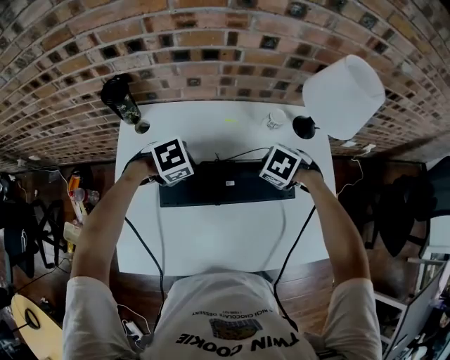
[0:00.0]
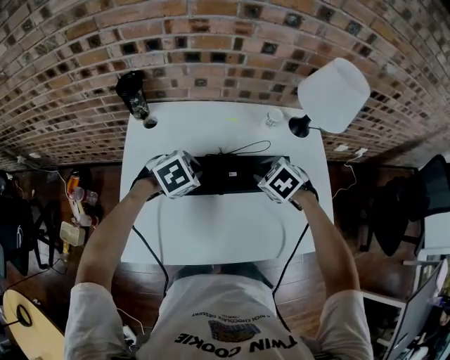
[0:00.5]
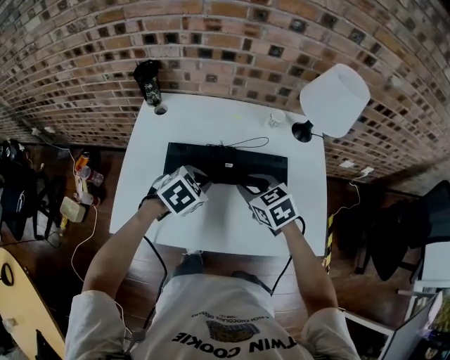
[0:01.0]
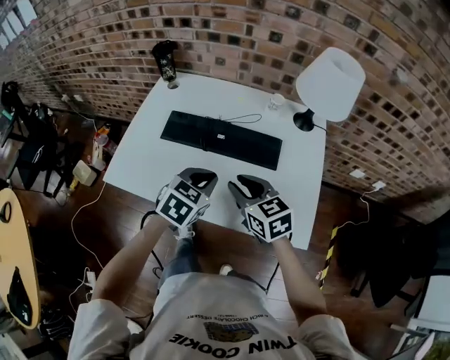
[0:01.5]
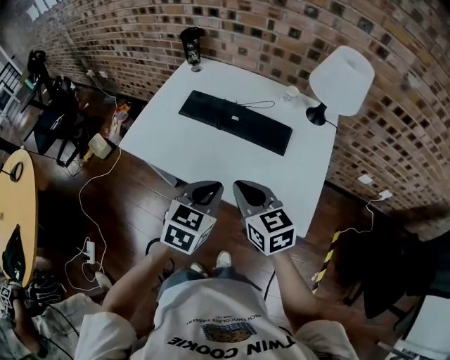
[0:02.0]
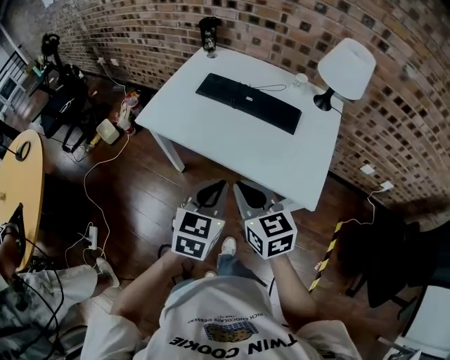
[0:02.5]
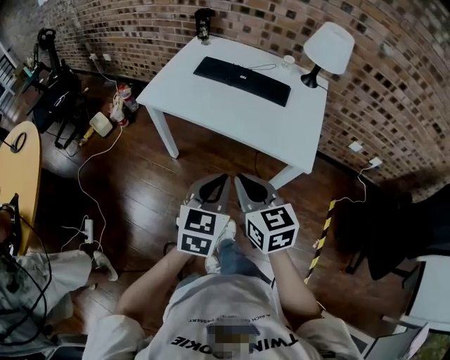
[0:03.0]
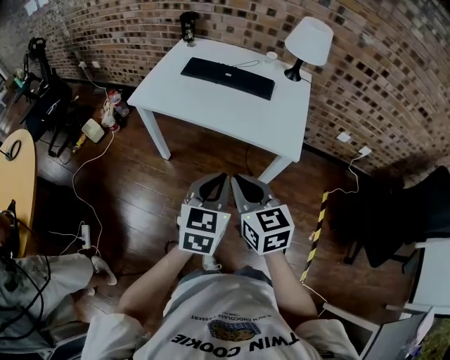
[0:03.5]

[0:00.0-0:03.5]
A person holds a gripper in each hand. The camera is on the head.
0:00.0 to 0:02.0: The left gripper shifts by some 40 cm, and tips its fingers upward by approximately 40 degrees. The right gripper changes place by roughly 35 cm, points its fingers approximately 60 degrees further upward, and closes up.
0:02.0 to 0:03.5: The two grippers go roughly 25 cm backward.

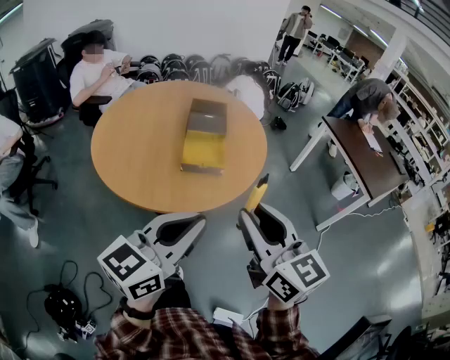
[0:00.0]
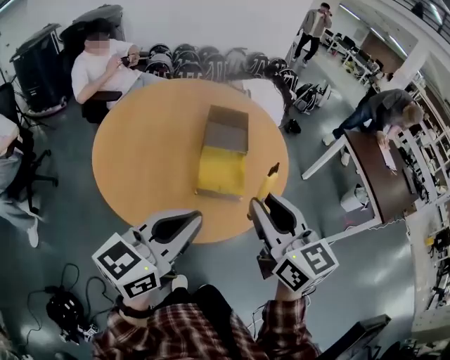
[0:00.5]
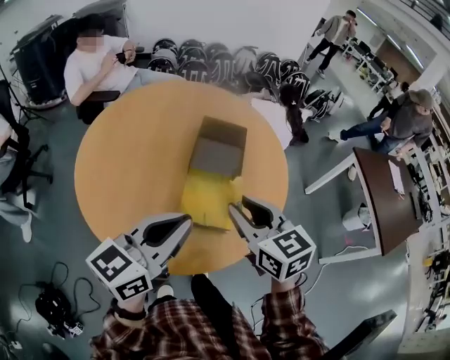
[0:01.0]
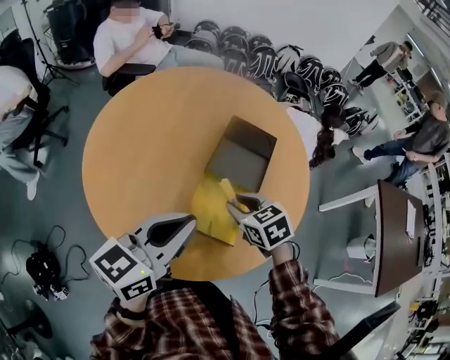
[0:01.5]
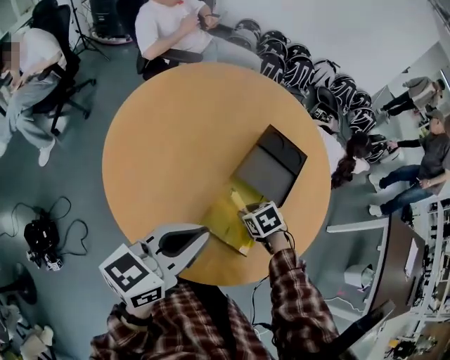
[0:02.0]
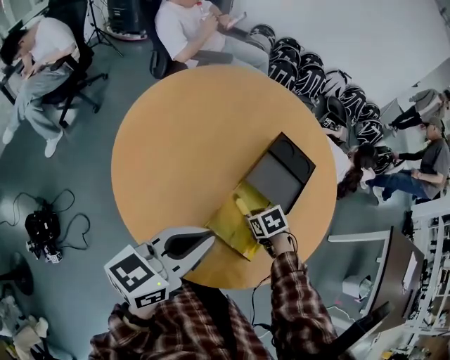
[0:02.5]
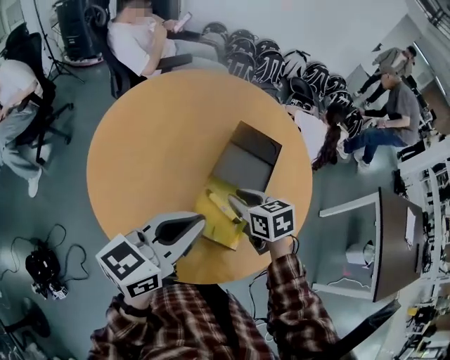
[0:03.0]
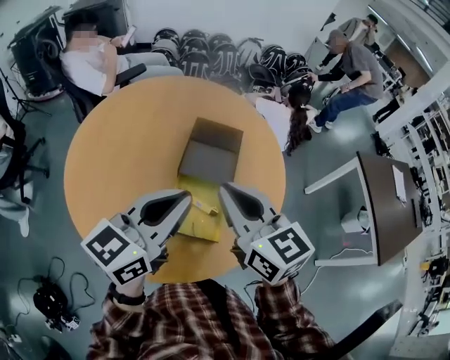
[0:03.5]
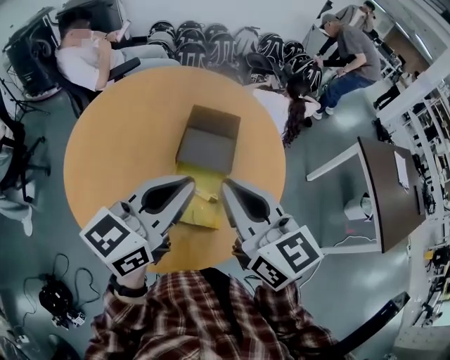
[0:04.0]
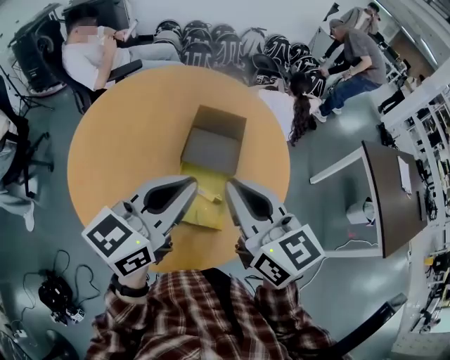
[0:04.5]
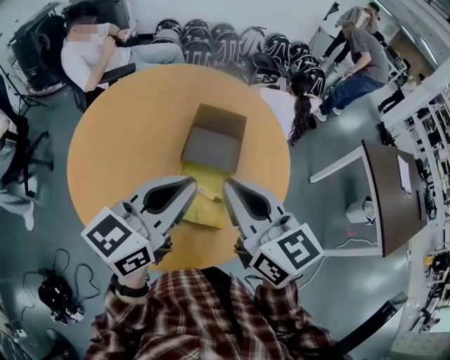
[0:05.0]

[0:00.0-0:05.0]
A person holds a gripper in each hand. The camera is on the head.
0:00.0 to 0:02.5: The left gripper shifts by about 35 cm, and changes its angle by roughly 30 degrees, while the right gripper shifts by some 60 cm, and points its fingers approximately 70 degrees further downward.
0:02.5 to 0:05.0: The left gripper moves some 10 cm, and turns by approximately 20 degrees; the right gripper shifts approximately 35 cm upward, angles its fingers upward, by some 60 degrees, and closes its fingers.

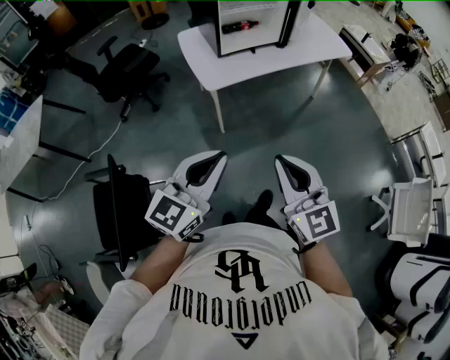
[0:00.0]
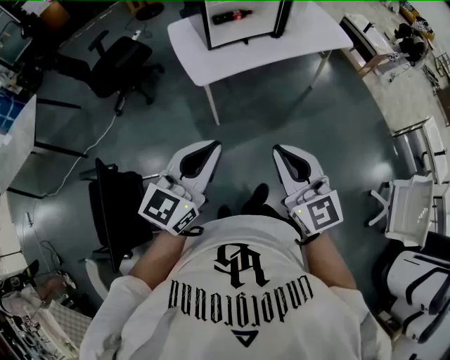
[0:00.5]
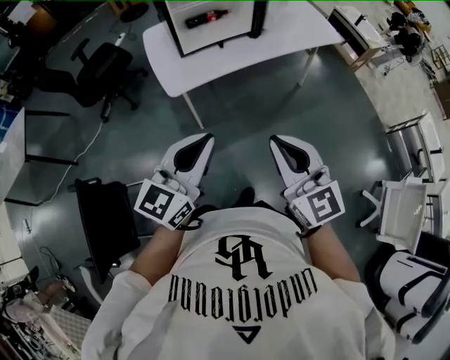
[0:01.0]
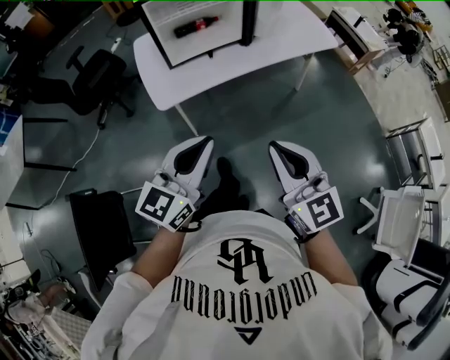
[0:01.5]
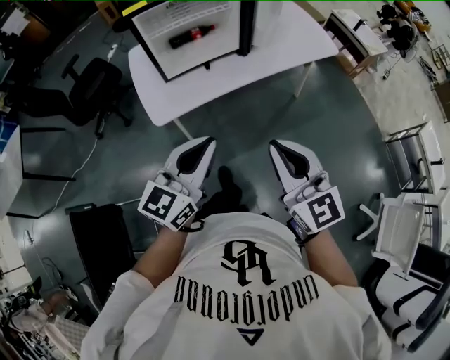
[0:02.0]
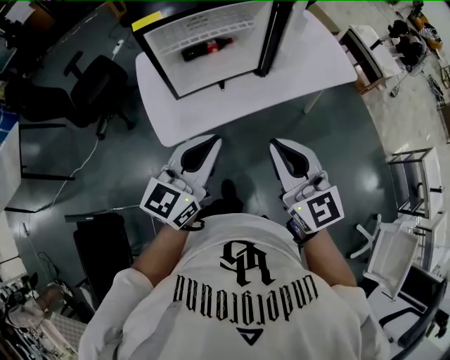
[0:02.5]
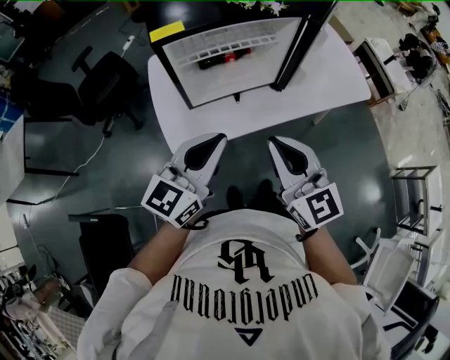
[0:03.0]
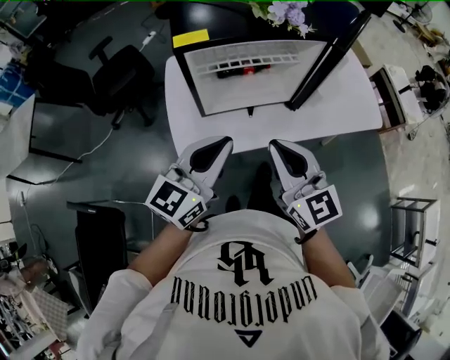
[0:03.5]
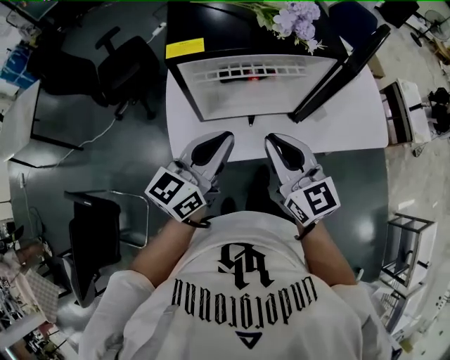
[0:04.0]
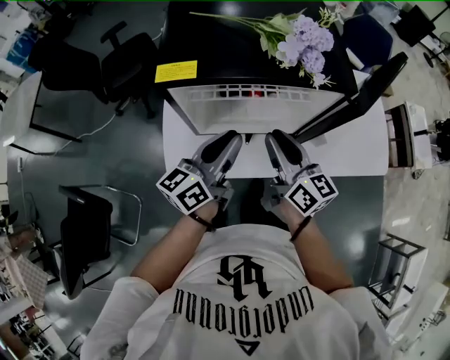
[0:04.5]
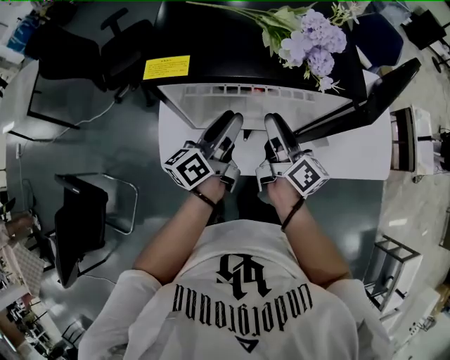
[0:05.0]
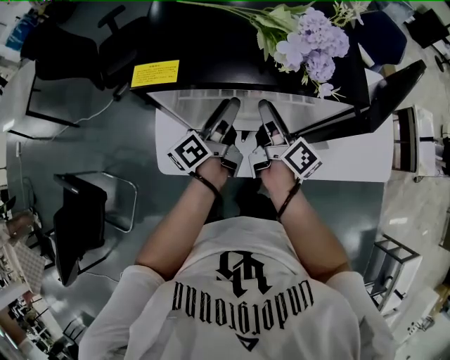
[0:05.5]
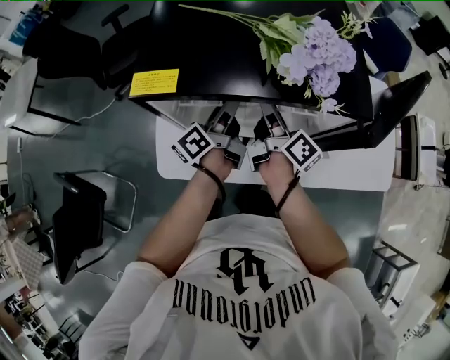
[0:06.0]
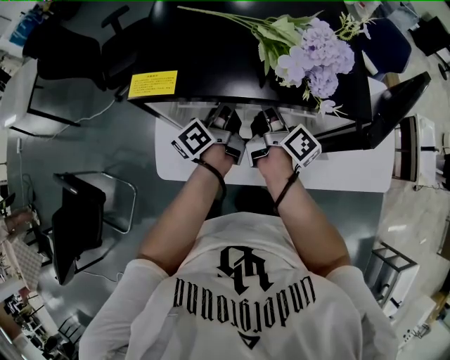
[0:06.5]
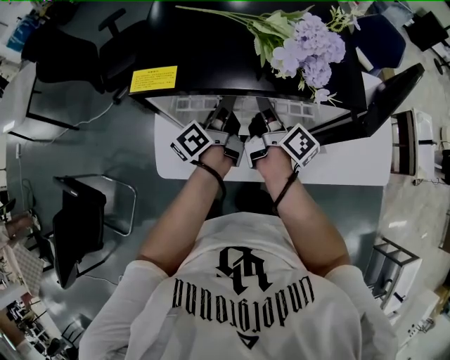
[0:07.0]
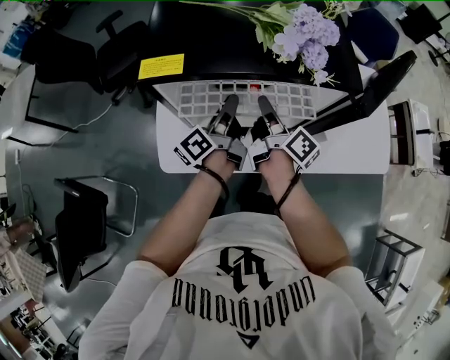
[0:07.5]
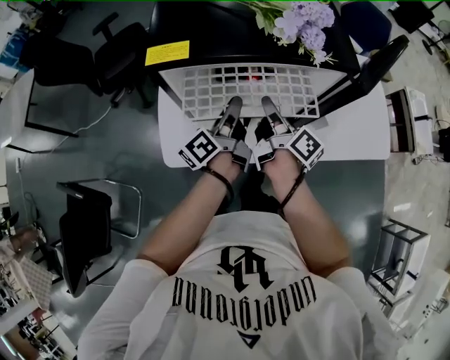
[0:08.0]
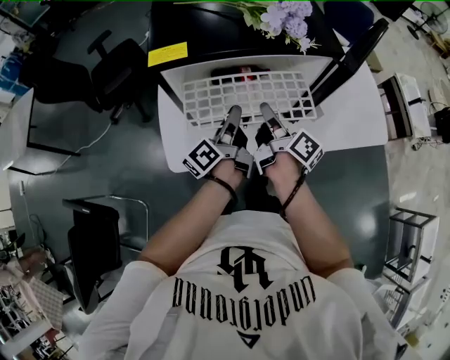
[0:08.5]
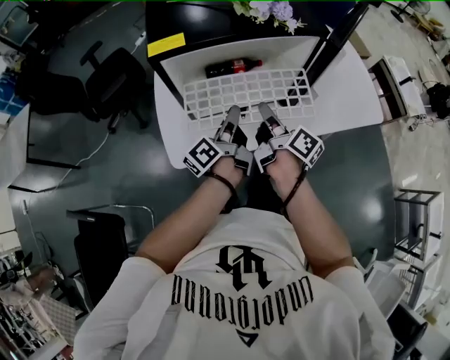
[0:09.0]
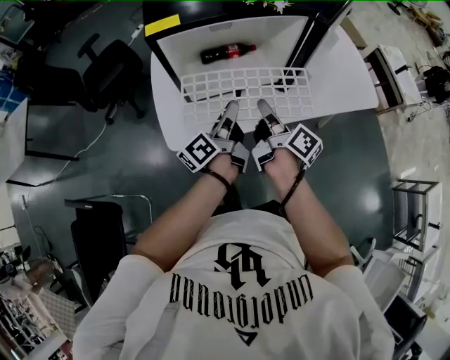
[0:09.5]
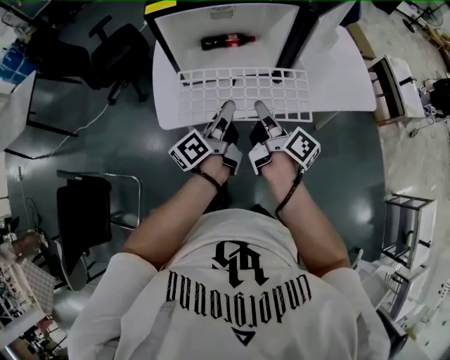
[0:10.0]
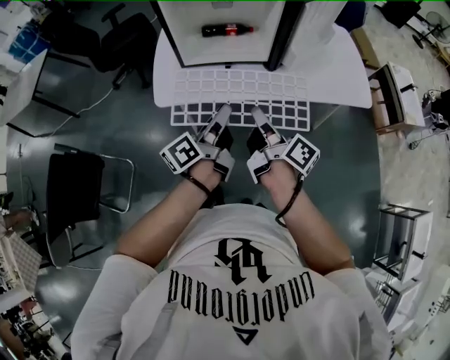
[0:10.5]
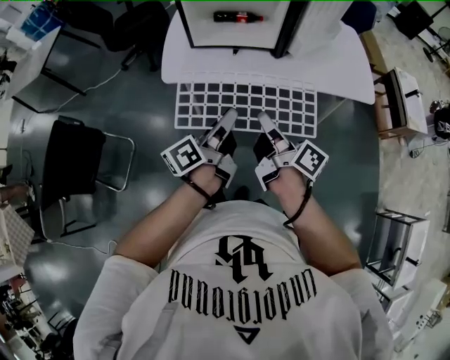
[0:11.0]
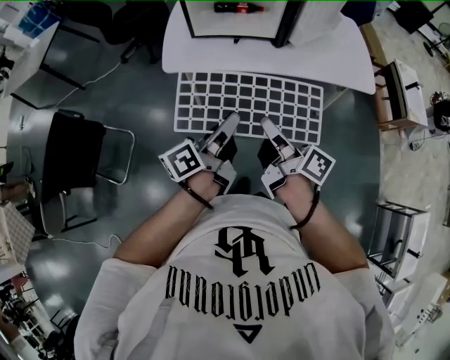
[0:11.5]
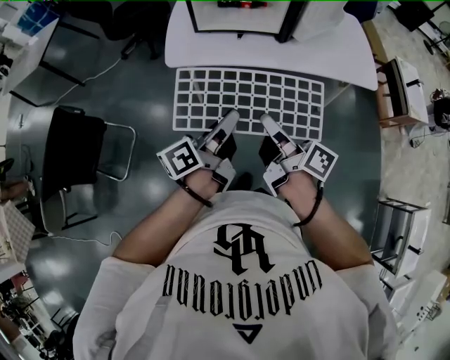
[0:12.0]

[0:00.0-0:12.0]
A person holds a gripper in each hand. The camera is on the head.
0:00.0 to 0:02.0: The two grippers go roughly 35 cm forward and to the right.
0:02.0 to 0:04.0: Both grippers move forward, approximately 35 cm. The right gripper swivels approximately 20 degrees.
0:04.0 to 0:06.0: The two grippers go some 30 cm forward and downward. The right gripper rotates around the line of its fingers by about 60 degrees, clockwise from behind, and opens its fingers. Meanwhile the left gripper rolls counterclockwise, seen from behind, by about 50 degrees, and opens its fingers.
0:06.0 to 0:08.0: Both grippers travel together backward, about 10 cm. The right gripper closes up. Meanwhile the left gripper closes.
0:08.0 to 0:10.0: The two grippers go some 25 cm backward.
0:10.0 to 0:12.0: The two grippers go some 30 cm backward. The right gripper rotates roughly 20 degrees.

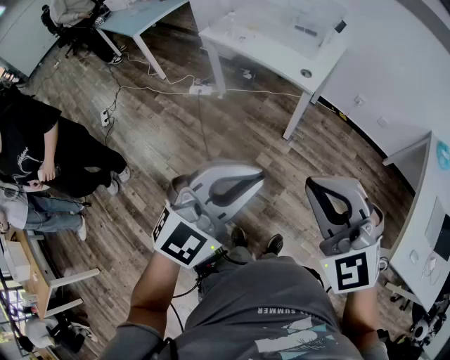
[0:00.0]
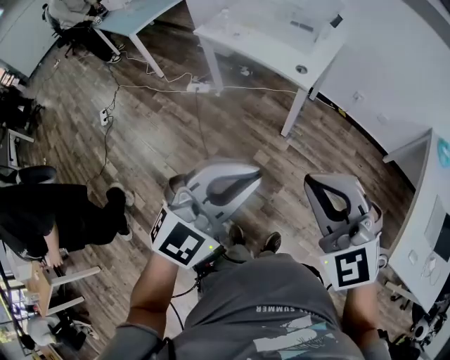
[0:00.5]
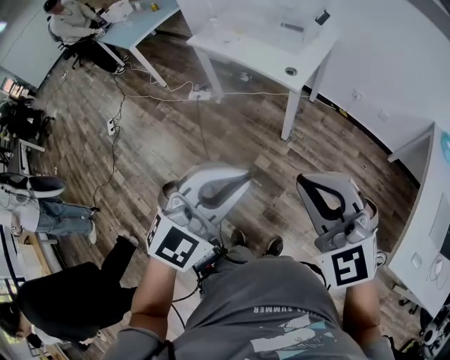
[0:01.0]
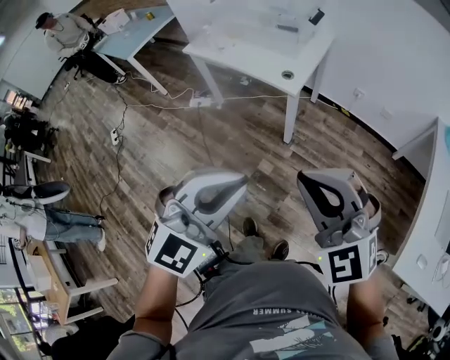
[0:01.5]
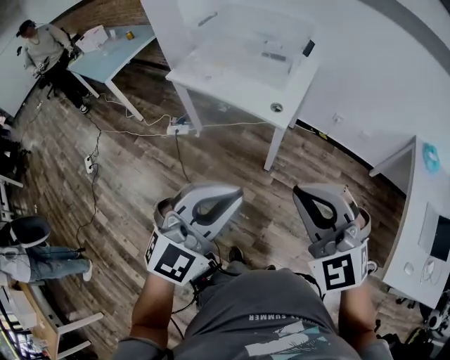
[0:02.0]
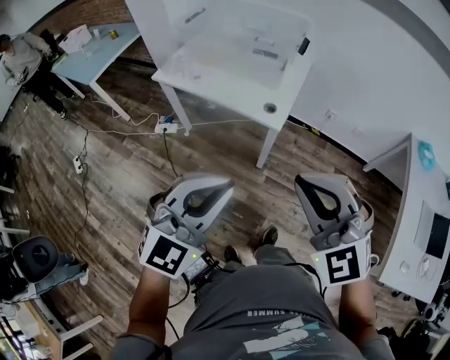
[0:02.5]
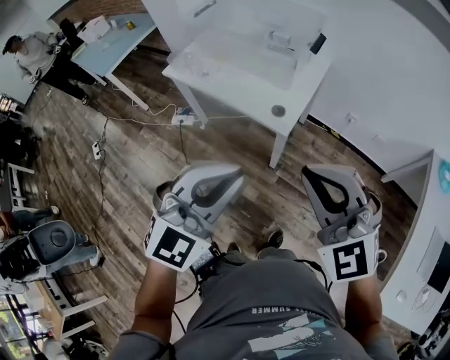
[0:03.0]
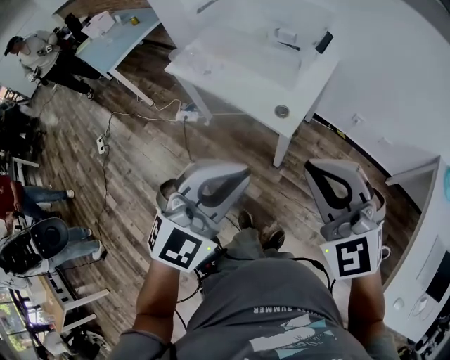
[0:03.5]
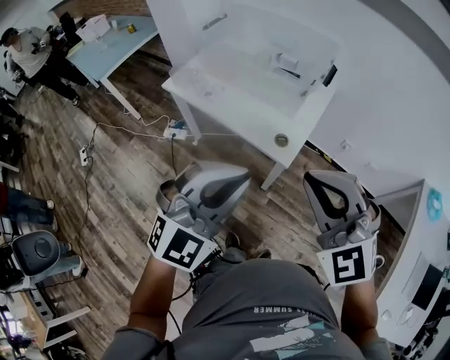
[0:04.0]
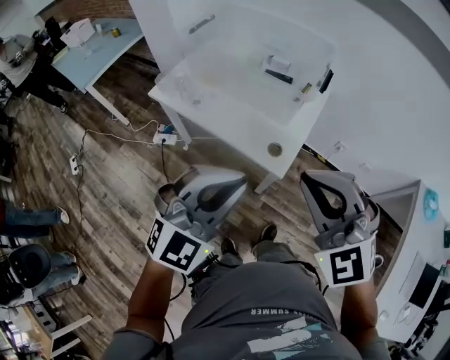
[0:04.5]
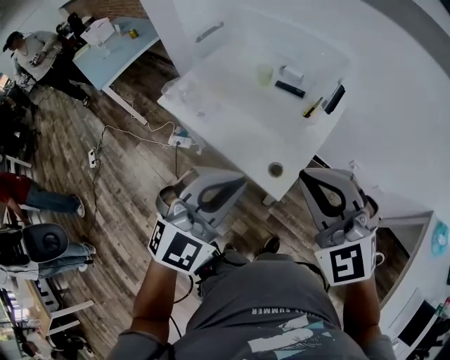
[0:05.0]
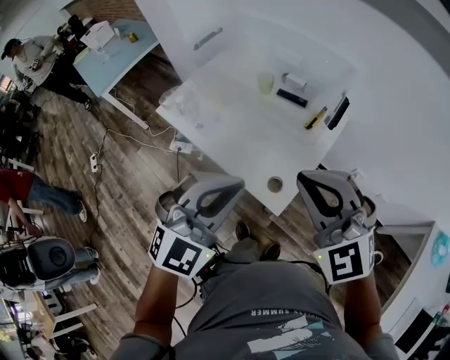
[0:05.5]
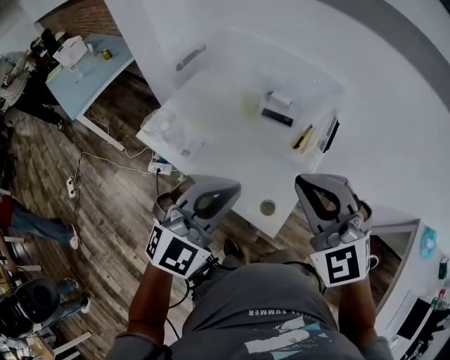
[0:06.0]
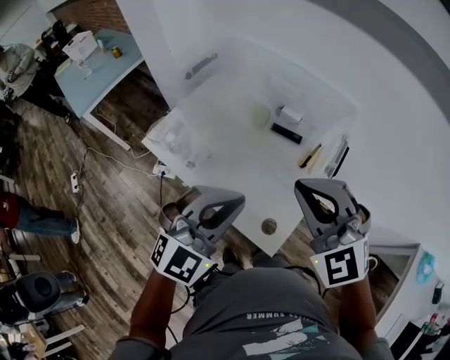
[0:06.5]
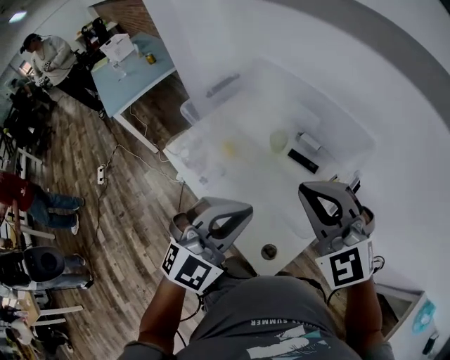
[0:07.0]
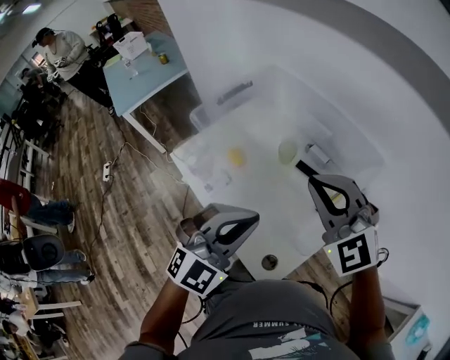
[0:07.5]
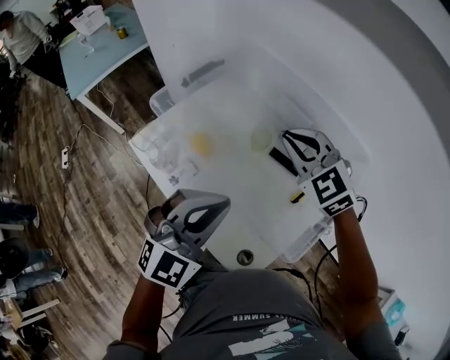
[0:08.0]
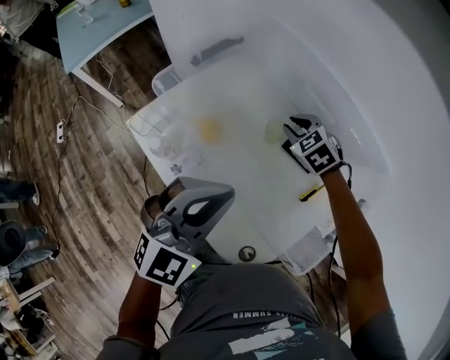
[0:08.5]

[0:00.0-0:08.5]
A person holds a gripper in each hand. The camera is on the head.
0:00.0 to 0:02.0: Both grippers move forward, about 15 cm.
0:02.0 to 0:04.0: Both grippers travel together forward, about 25 cm.
0:04.0 to 0:06.5: The two grippers go some 35 cm forward.
0:06.5 to 0:08.5: The left gripper is displaced forward by some 15 cm; the right gripper heads forward and downward, covering approximately 40 cm, and tilts its fingers approximately 30 degrees downward.
